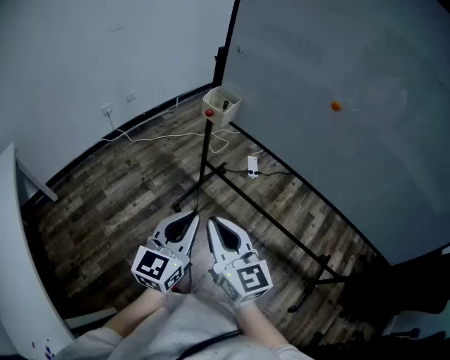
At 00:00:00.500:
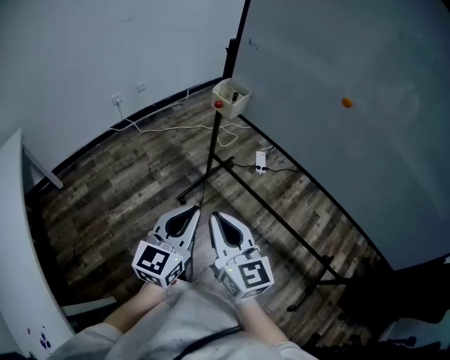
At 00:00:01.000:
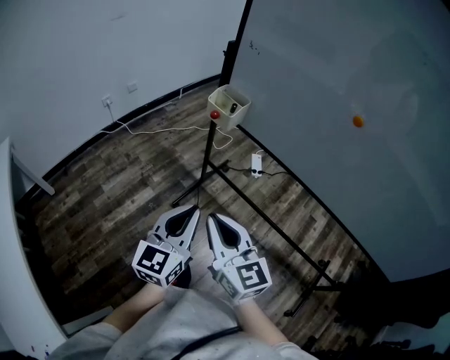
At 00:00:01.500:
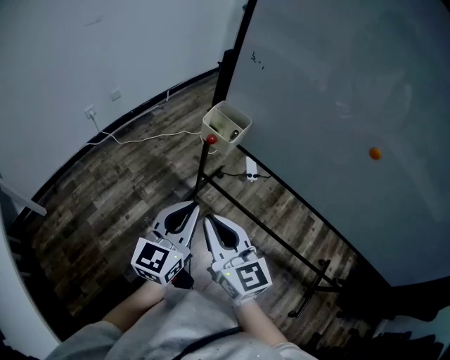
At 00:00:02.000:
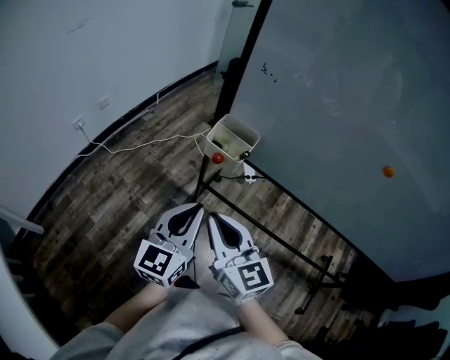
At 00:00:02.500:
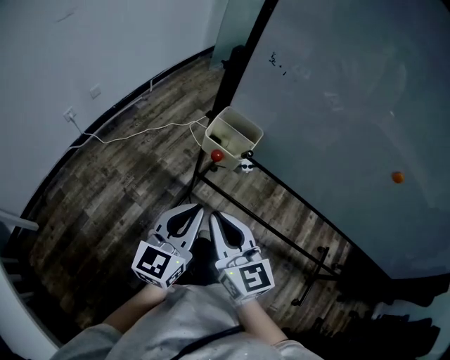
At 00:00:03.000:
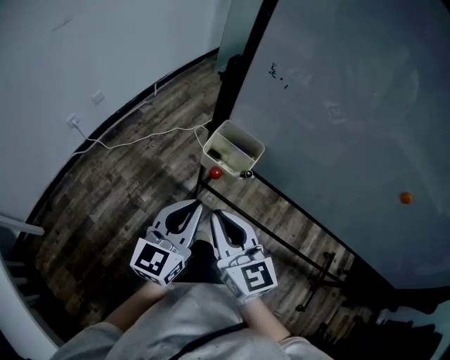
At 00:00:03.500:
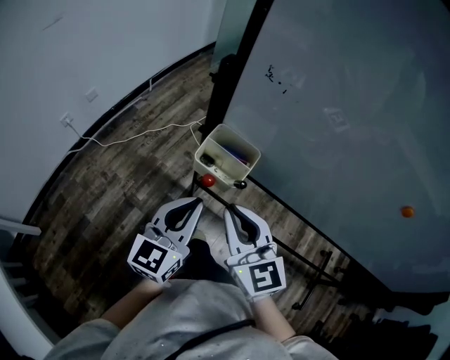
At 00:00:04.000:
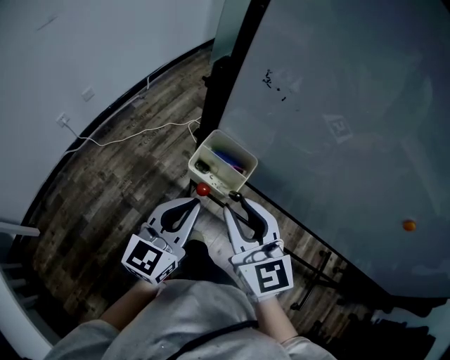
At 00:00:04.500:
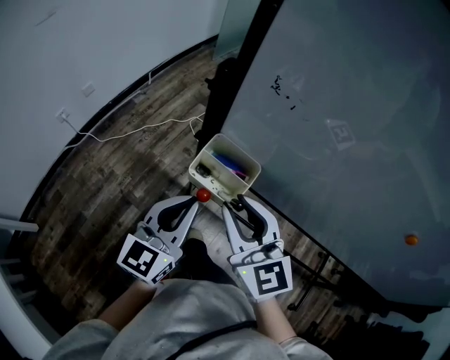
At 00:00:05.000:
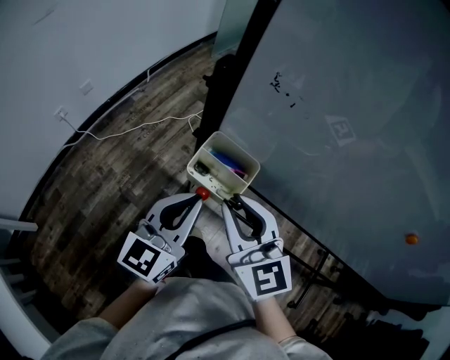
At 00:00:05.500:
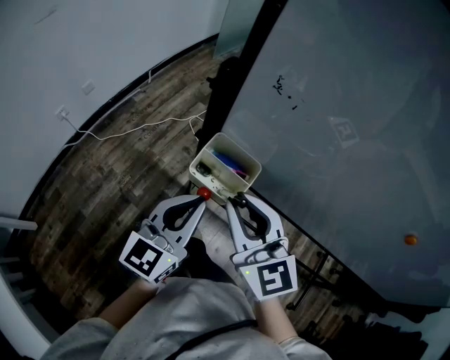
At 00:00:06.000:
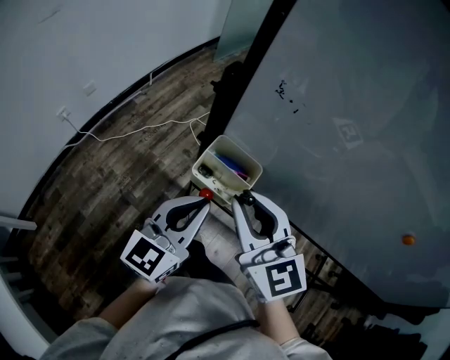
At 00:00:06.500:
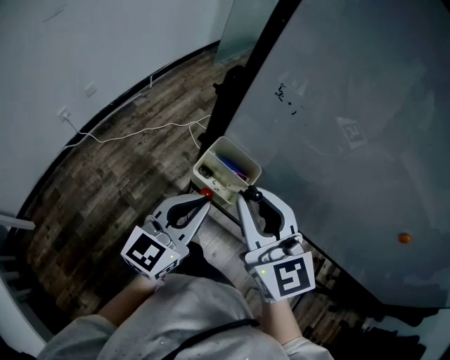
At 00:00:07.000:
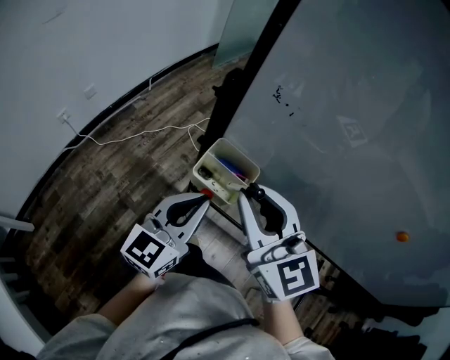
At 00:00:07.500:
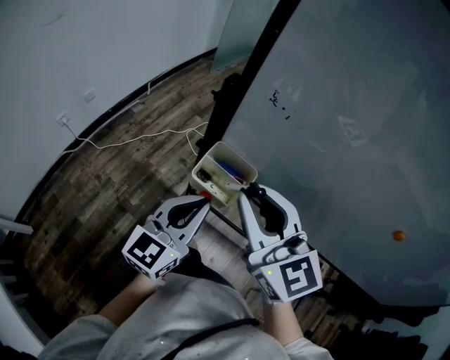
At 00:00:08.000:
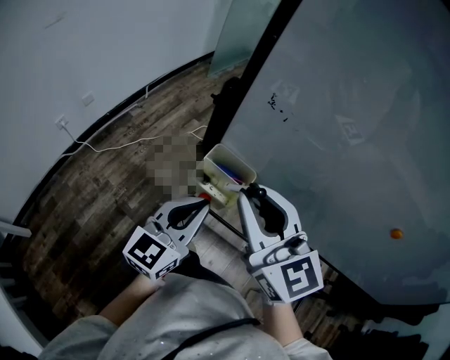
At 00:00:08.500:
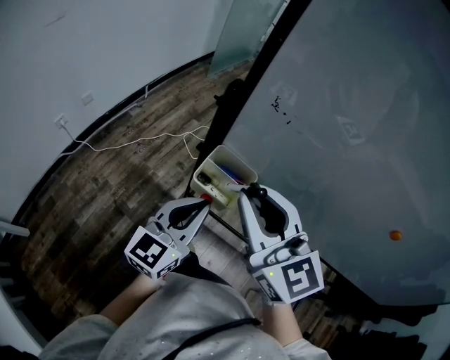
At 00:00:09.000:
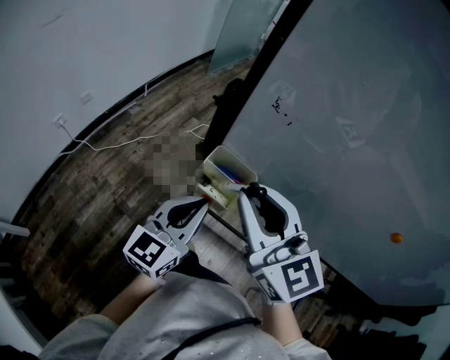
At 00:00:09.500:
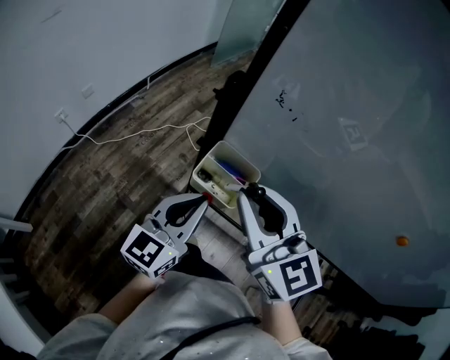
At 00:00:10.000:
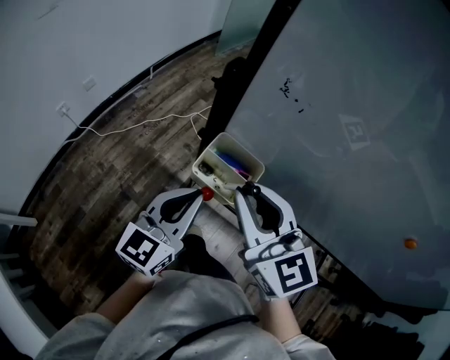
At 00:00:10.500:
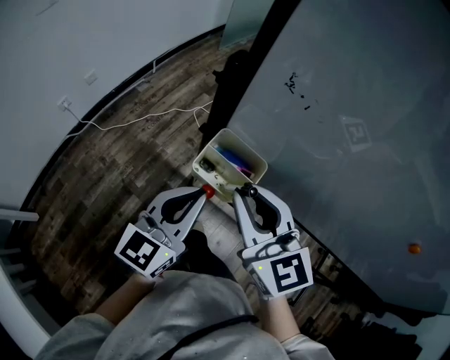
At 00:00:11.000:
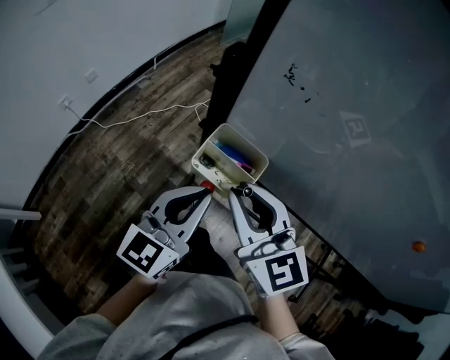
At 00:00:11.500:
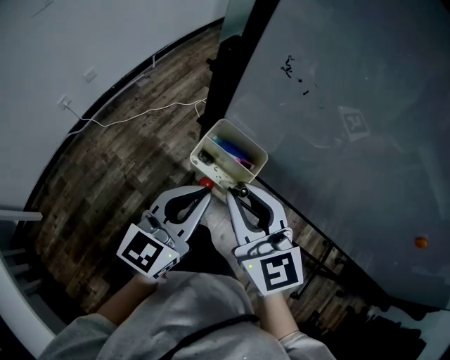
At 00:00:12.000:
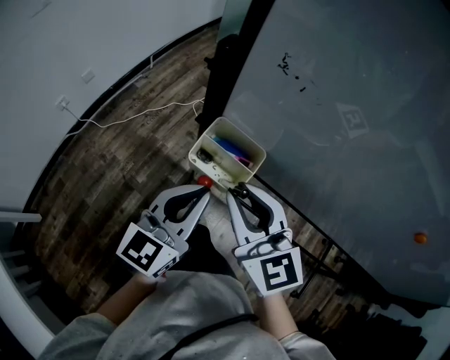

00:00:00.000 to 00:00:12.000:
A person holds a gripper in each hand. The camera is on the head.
00:00:00.000 to 00:00:02.000: Both grippers move forward, about 30 cm.
00:00:02.000 to 00:00:04.000: The two grippers go about 15 cm forward. The right gripper opens.
00:00:04.000 to 00:00:06.000: There are only small adjustments of the grippers.
00:00:06.000 to 00:00:08.000: The right gripper goes some 5 cm upward.
00:00:08.000 to 00:00:10.000: The right gripper goes some 5 cm downward.
00:00:10.000 to 00:00:12.000: There are only small adjustments of the grippers.

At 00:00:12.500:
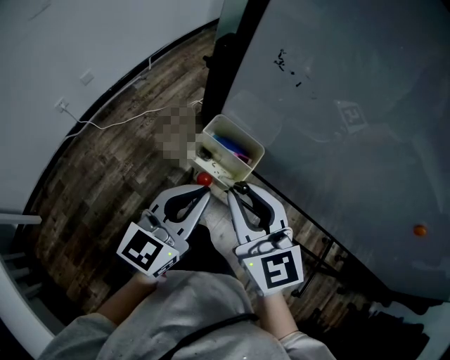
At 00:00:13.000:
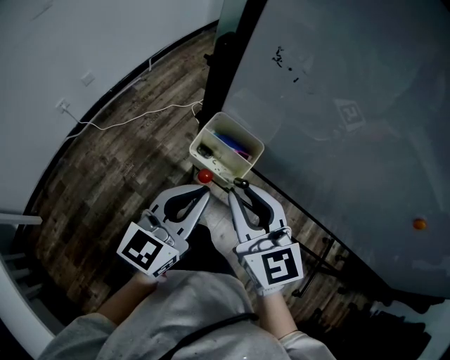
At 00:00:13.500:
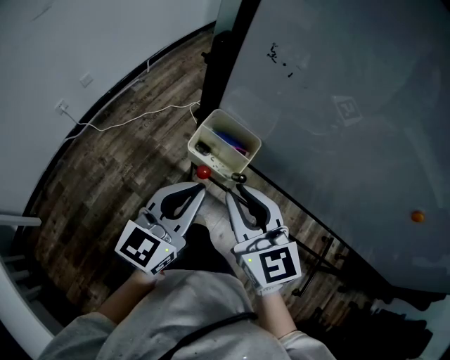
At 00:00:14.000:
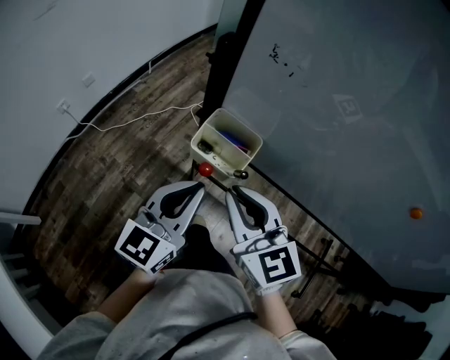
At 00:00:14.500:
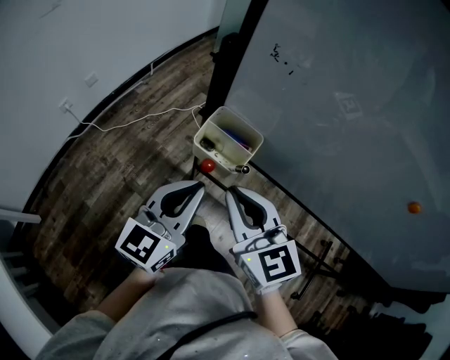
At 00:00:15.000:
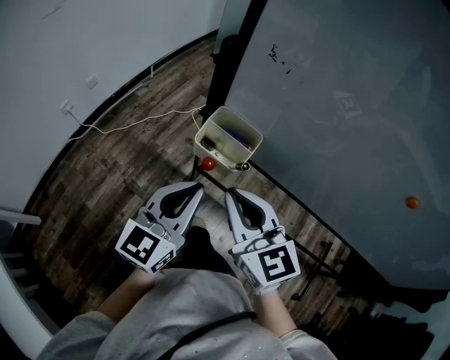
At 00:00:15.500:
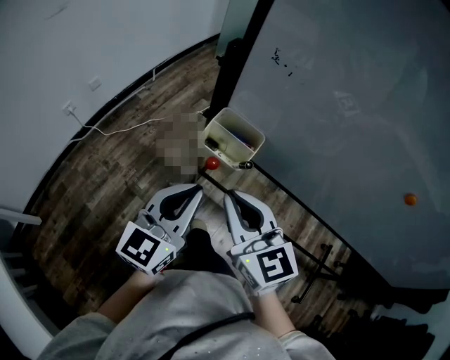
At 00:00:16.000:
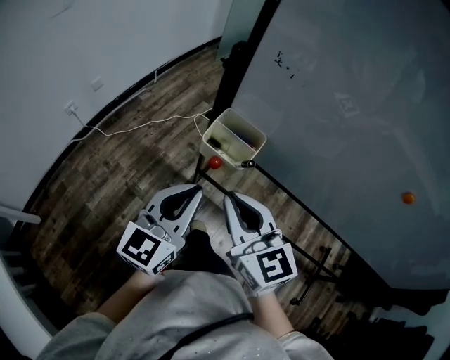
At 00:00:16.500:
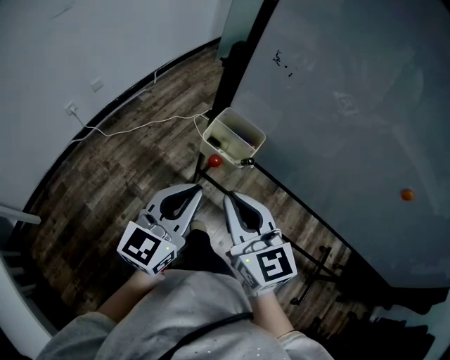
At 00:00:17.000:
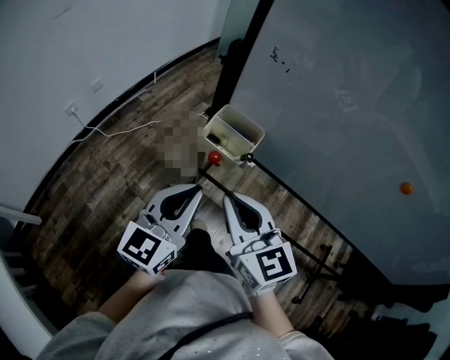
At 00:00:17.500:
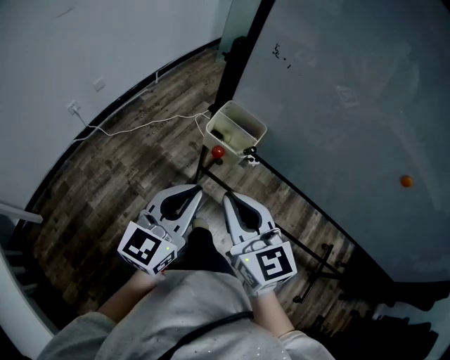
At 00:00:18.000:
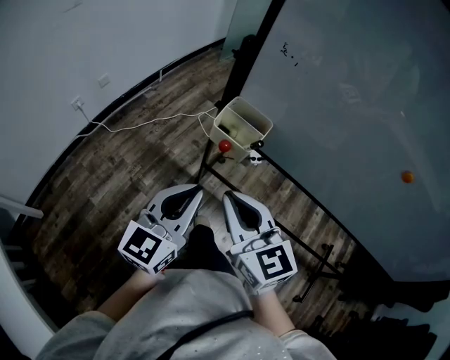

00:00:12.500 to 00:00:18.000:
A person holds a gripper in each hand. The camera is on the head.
00:00:12.500 to 00:00:14.500: There are only small adjustments of the grippers.
00:00:14.500 to 00:00:16.000: The grippers move only a little.
00:00:16.000 to 00:00:18.000: The grippers both shift backward by some 5 cm.

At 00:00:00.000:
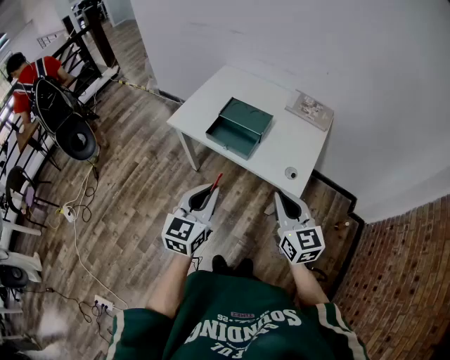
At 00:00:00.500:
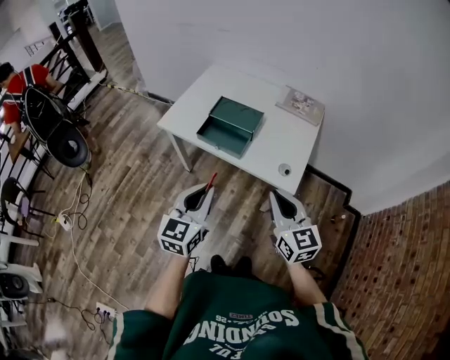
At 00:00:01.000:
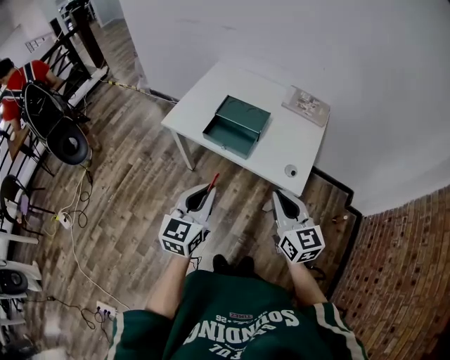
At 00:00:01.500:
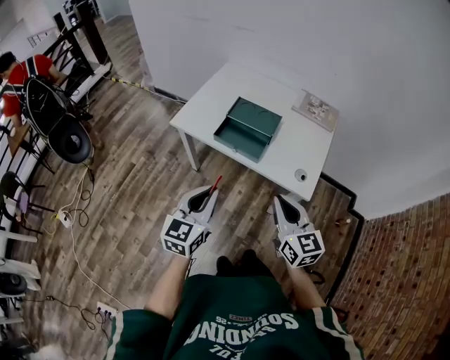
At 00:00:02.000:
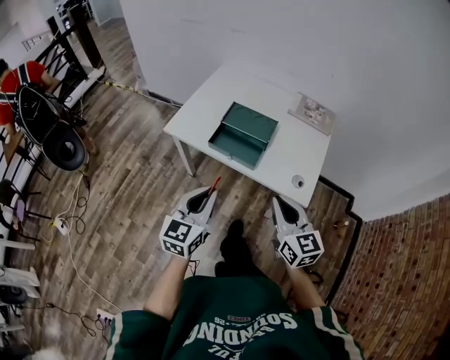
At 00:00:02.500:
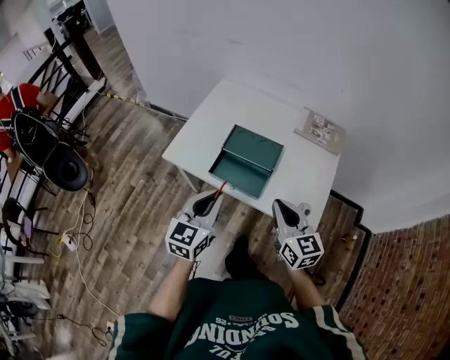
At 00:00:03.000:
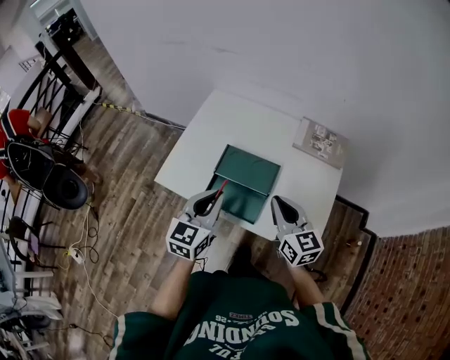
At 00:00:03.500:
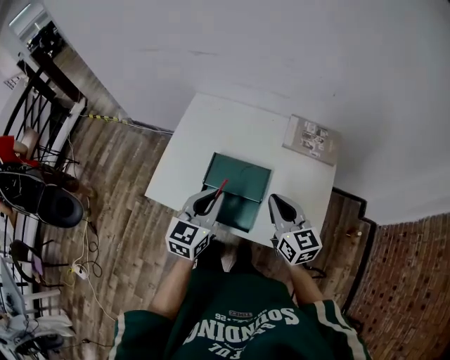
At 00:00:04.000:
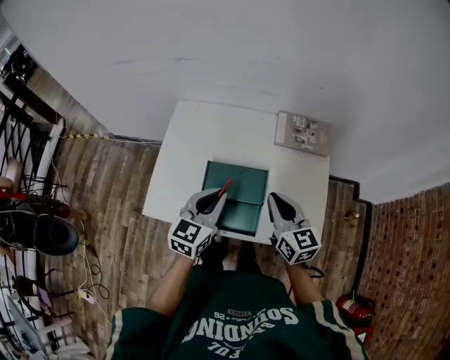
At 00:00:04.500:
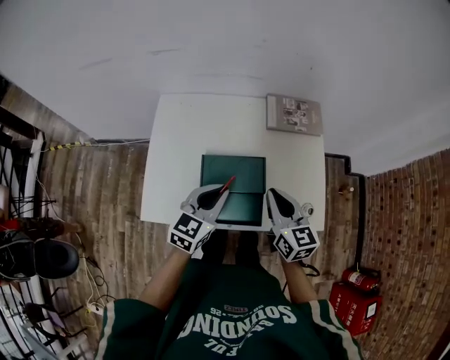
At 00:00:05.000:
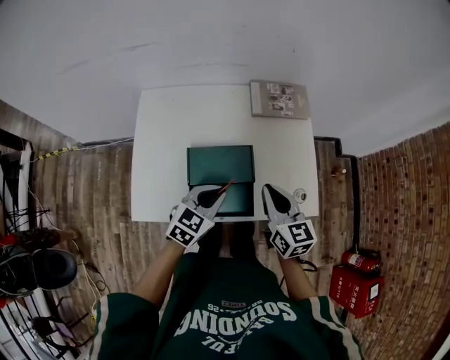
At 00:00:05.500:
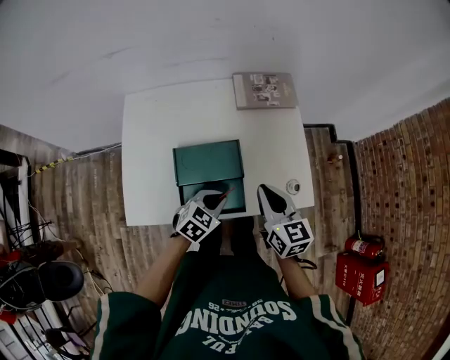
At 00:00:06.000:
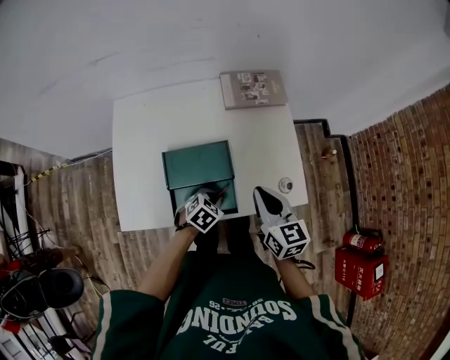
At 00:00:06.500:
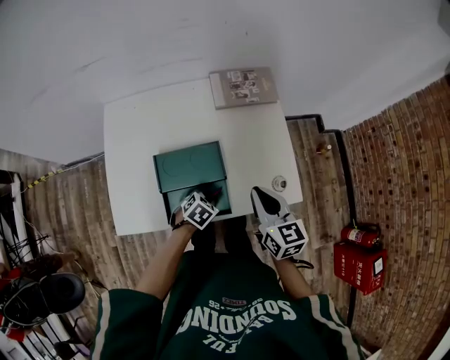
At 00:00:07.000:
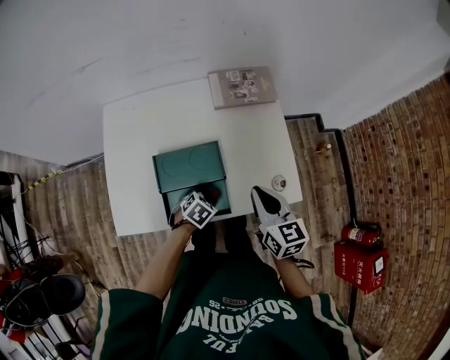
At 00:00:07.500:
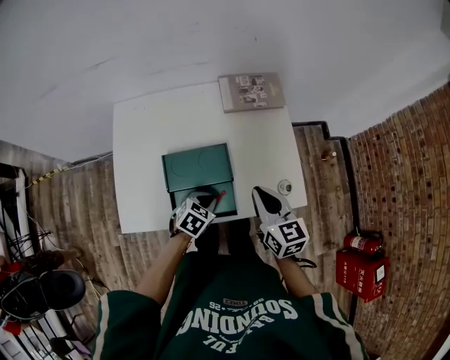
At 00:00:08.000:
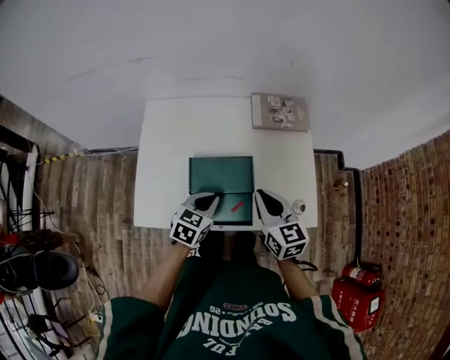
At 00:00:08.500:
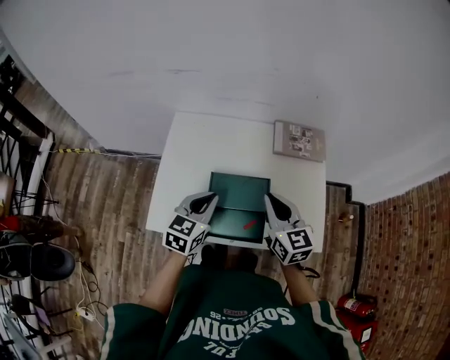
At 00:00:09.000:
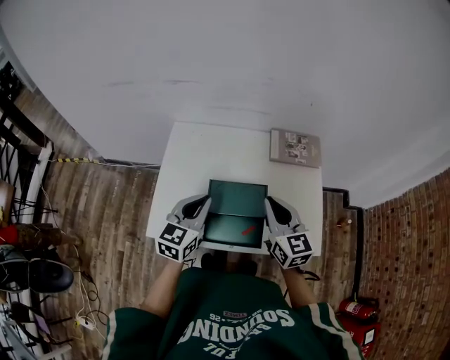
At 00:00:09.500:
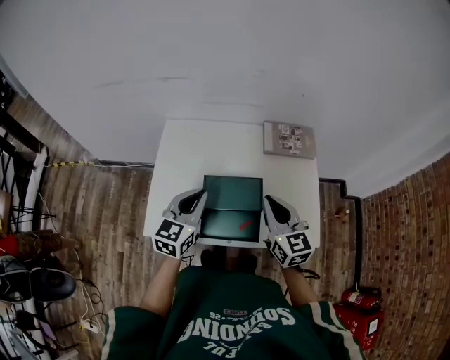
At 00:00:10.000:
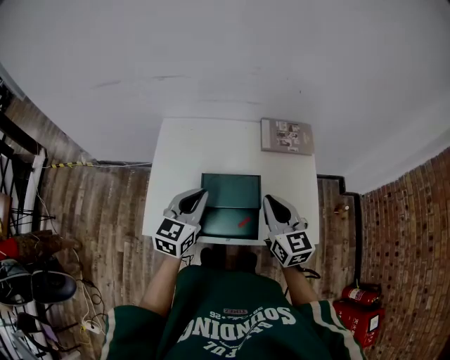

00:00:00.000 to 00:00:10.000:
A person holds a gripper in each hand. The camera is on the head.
00:00:00.000 to 00:00:02.000: The left gripper heads forward and to the left, covering some 10 cm. The right gripper is displaced to the left by some 5 cm.
00:00:02.000 to 00:00:04.000: The grippers both shift forward by approximately 30 cm. The left gripper swivels some 20 degrees.
00:00:04.000 to 00:00:06.000: The right gripper moves approximately 10 cm; the left gripper shifts roughly 25 cm downward, and points its fingers about 40 degrees further downward.
00:00:06.000 to 00:00:08.000: The right gripper moves to the left, roughly 5 cm, while the left gripper goes about 15 cm upward and to the left, and changes its angle by some 30 degrees.
00:00:08.000 to 00:00:10.000: The left gripper moves upward and to the left, approximately 15 cm, and swivels approximately 30 degrees. Meanwhile the right gripper goes about 5 cm upward.
